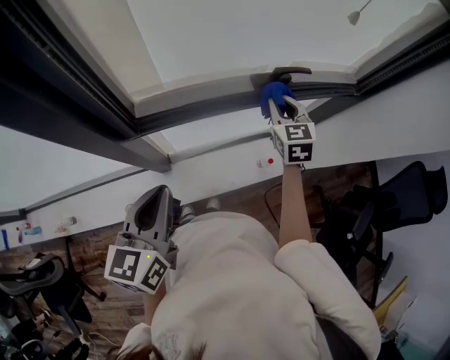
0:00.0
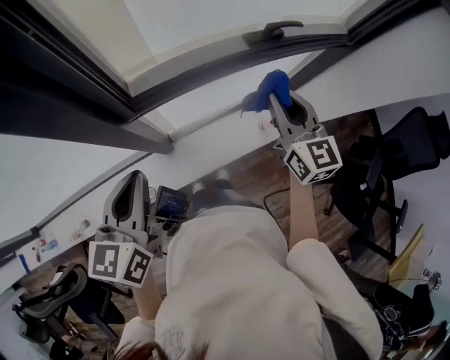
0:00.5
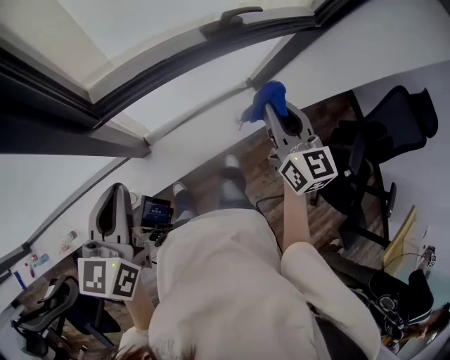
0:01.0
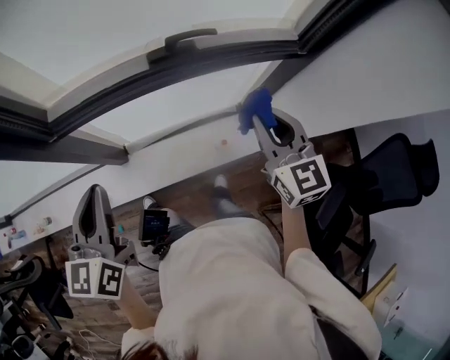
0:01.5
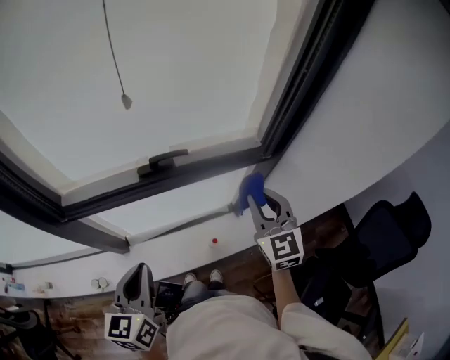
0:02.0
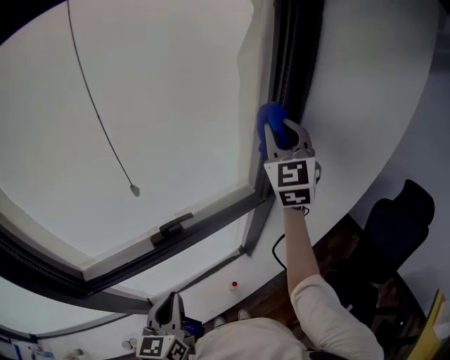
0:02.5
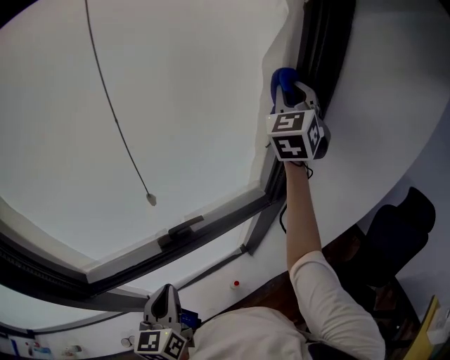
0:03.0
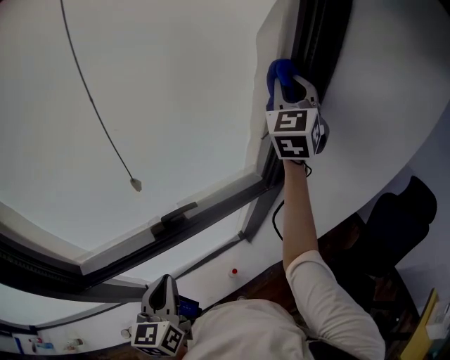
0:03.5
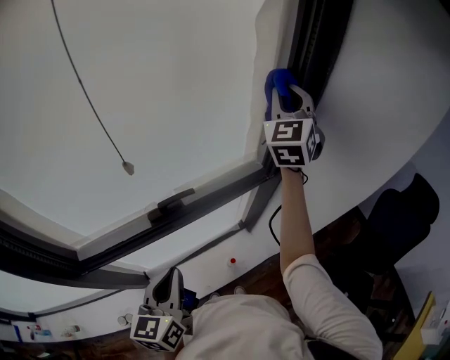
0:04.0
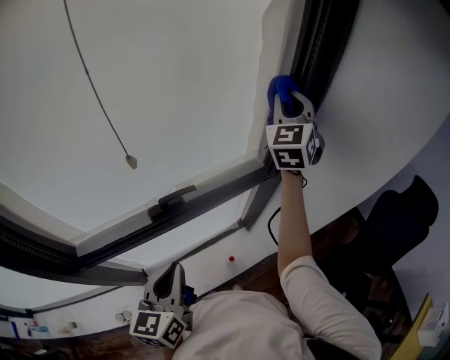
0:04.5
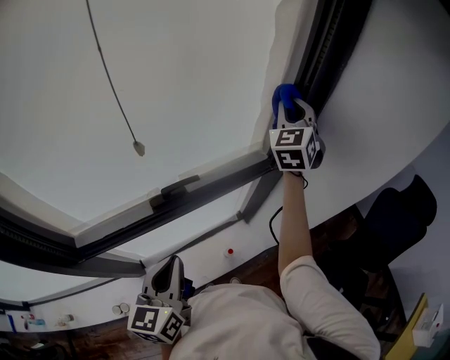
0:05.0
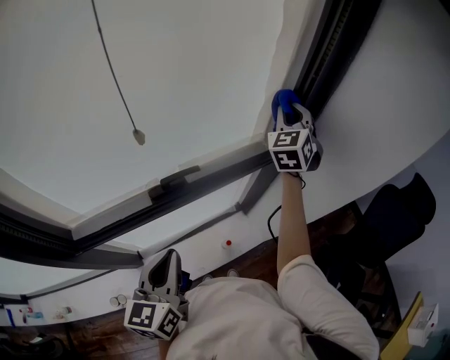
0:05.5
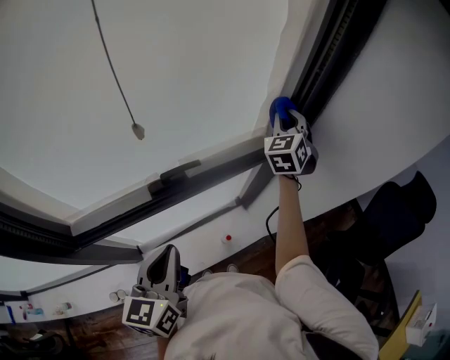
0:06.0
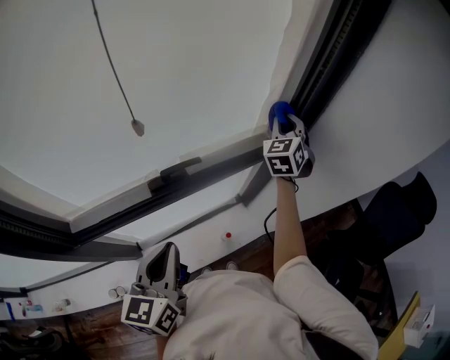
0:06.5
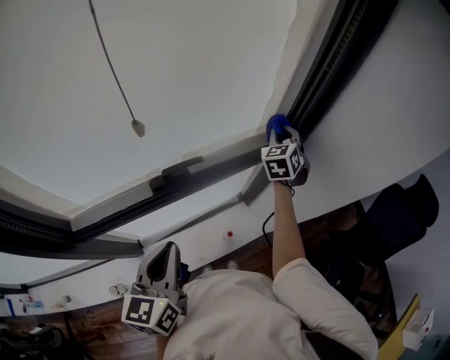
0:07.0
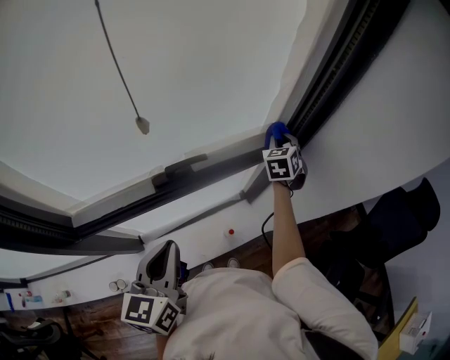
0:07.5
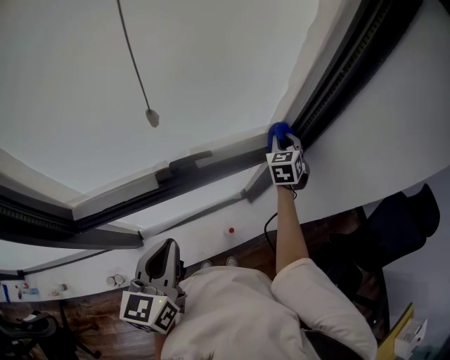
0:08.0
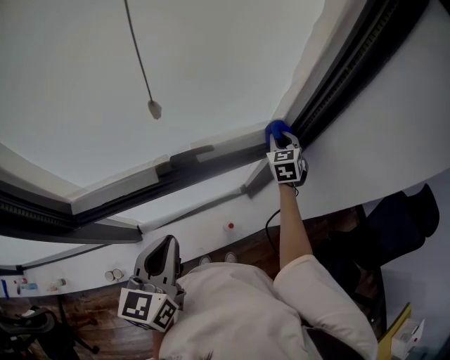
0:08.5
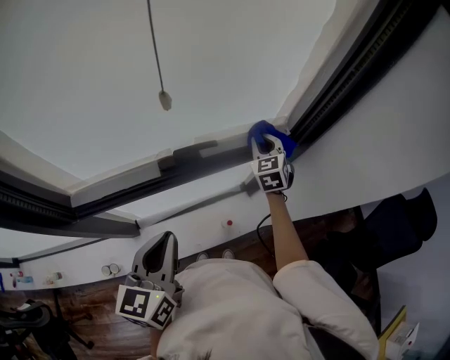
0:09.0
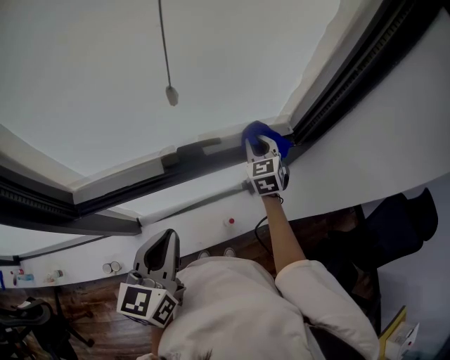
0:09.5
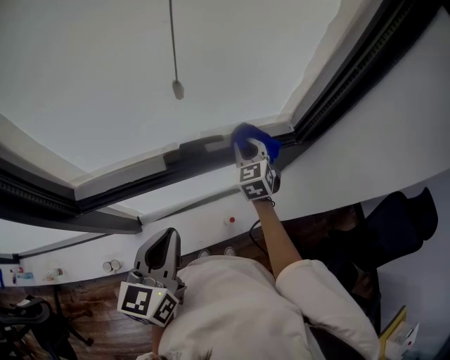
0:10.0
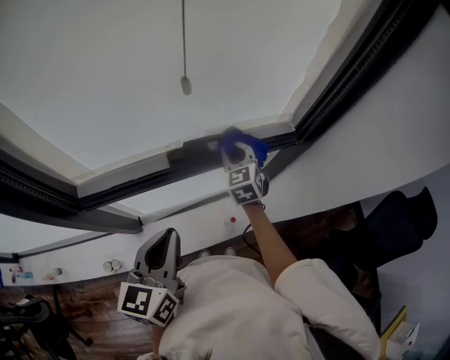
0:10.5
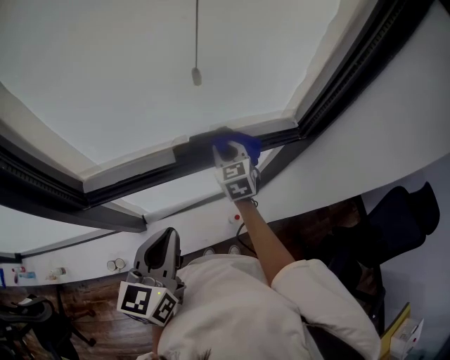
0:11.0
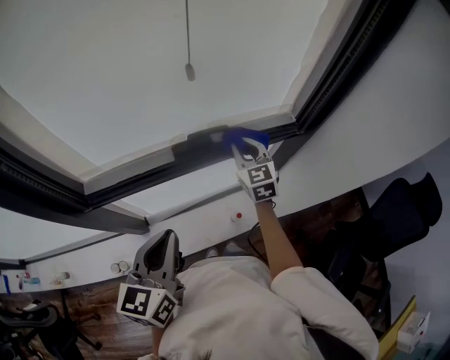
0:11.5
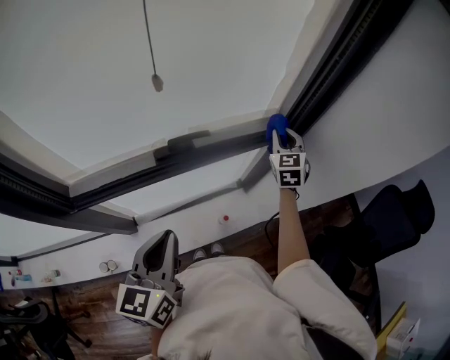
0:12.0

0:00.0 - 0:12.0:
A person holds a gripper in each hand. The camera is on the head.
0:00.0 - 0:02.0: The left gripper travels to the right by roughly 25 cm. The right gripper is displaced to the right and upward by about 30 cm.
0:02.0 - 0:04.0: The right gripper moves forward and upward, approximately 35 cm, and rotates about 40 degrees. The left gripper travels forward by roughly 10 cm.
0:04.0 - 0:06.0: The right gripper heads downward, covering roughly 20 cm.
0:06.0 - 0:08.0: The right gripper is displaced downward by some 15 cm.
0:08.0 - 0:10.0: The right gripper is displaced to the left and backward by about 20 cm, and swivels roughly 20 degrees.
0:10.0 - 0:12.0: The right gripper travels to the right by about 15 cm.

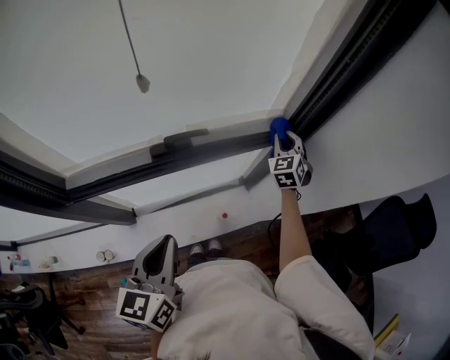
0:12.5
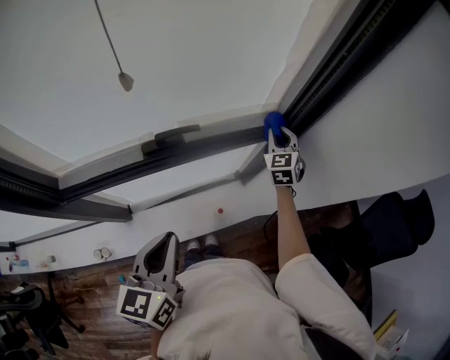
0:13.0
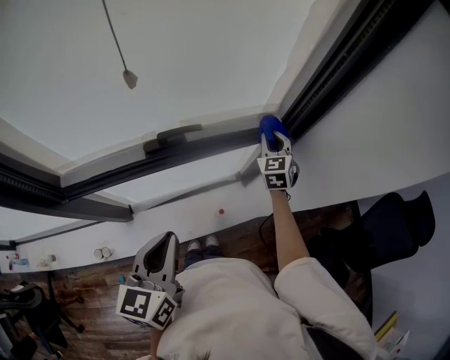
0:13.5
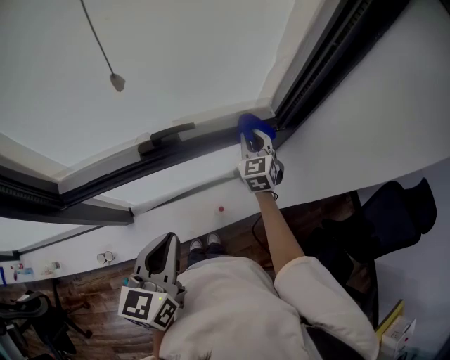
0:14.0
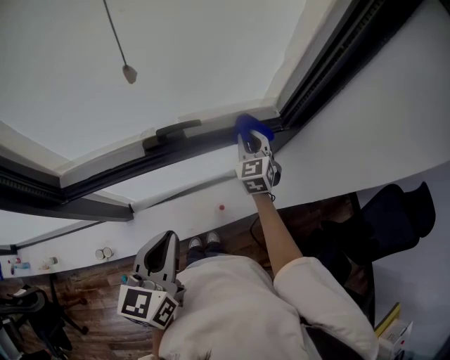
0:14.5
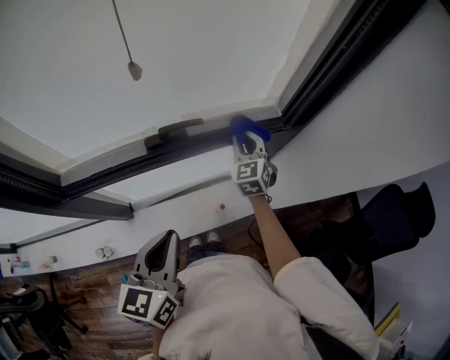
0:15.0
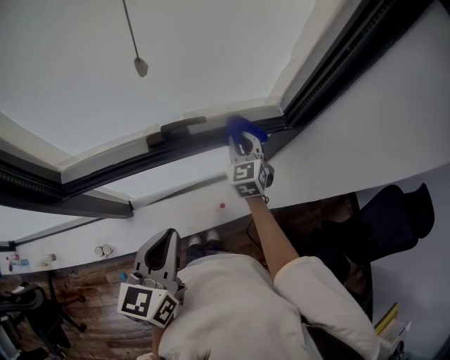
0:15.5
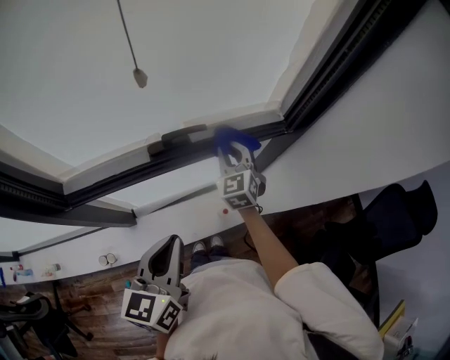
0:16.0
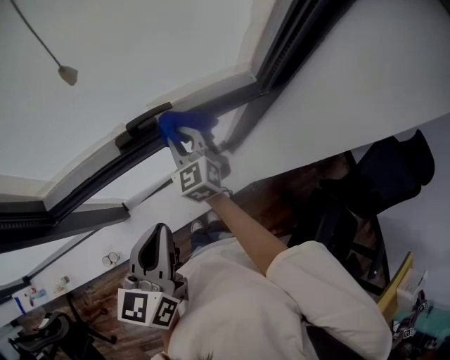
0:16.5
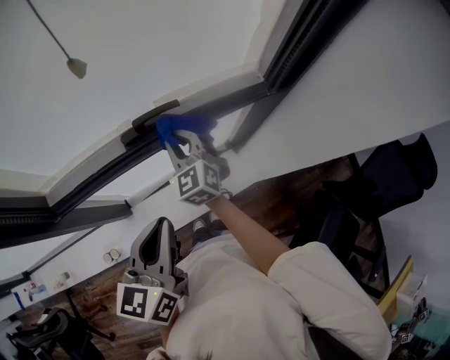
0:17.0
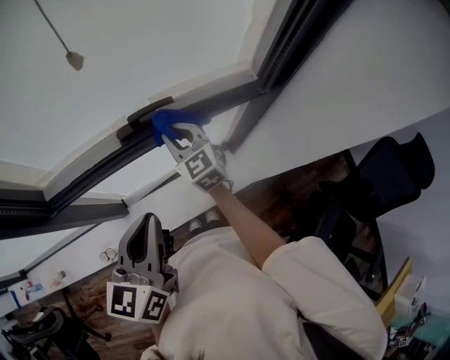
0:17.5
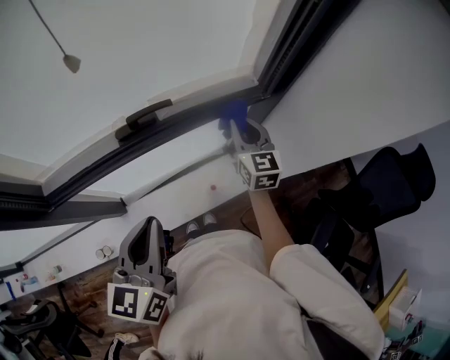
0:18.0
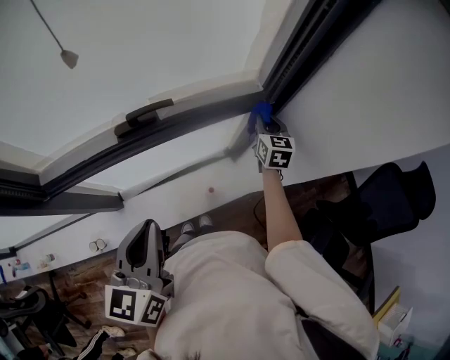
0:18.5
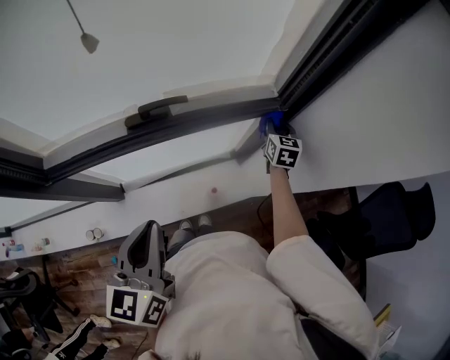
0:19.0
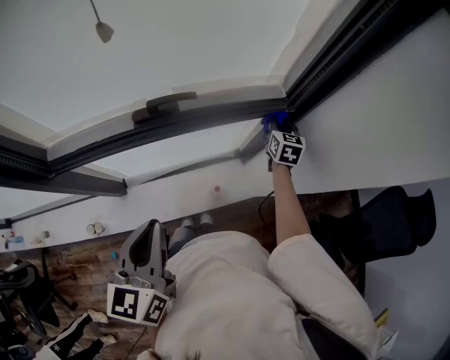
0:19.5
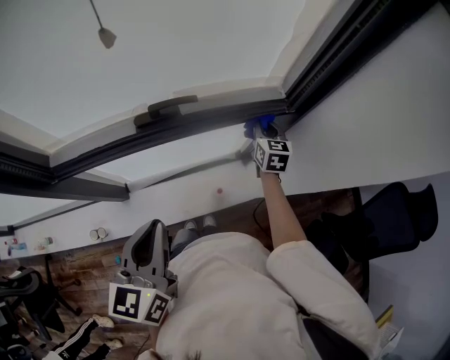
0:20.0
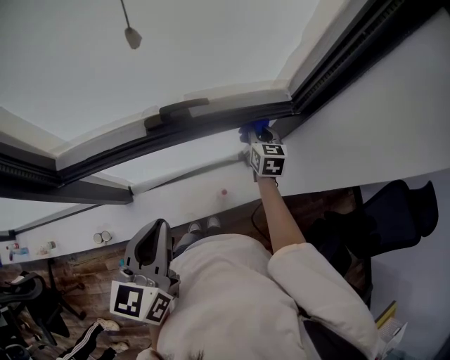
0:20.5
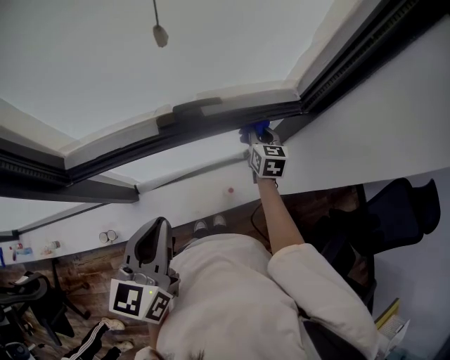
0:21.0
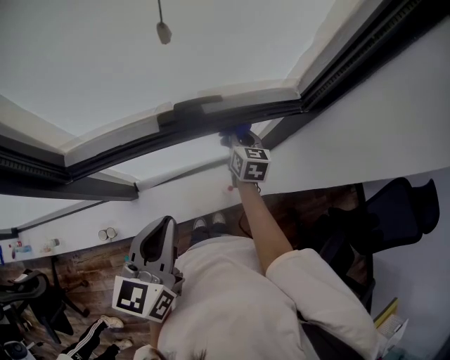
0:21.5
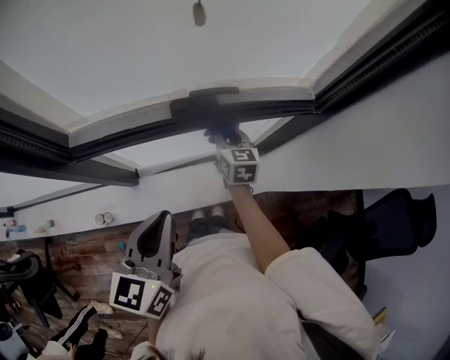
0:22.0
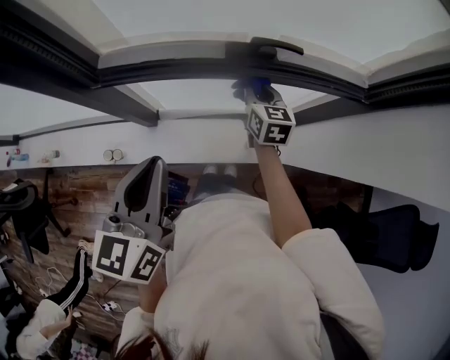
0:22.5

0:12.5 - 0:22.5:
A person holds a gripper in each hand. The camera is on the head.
0:12.5 - 0:14.5: The right gripper heads to the left and backward, covering roughly 10 cm.
0:14.5 - 0:16.5: The right gripper shifts roughly 15 cm to the left and backward.
0:16.5 - 0:18.5: The right gripper goes roughly 30 cm to the right, and rotates about 30 degrees.
0:18.5 - 0:20.5: The right gripper heads to the left, covering some 10 cm.
0:20.5 - 0:22.5: The left gripper heads to the left, covering some 10 cm. Meanwhile the right gripper heads to the left, covering about 25 cm, and turns by some 20 degrees.

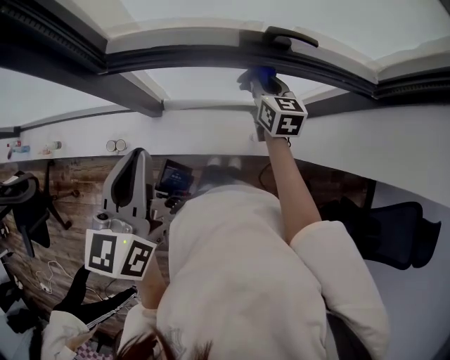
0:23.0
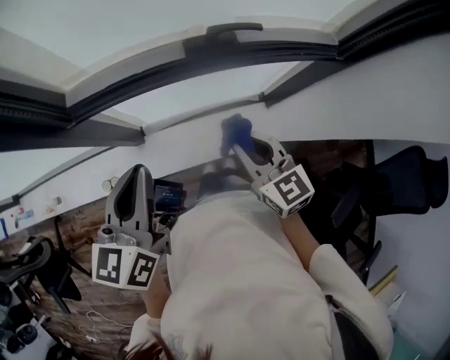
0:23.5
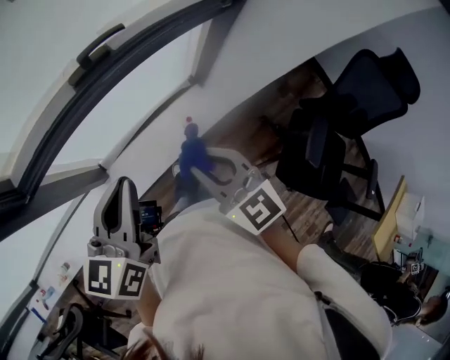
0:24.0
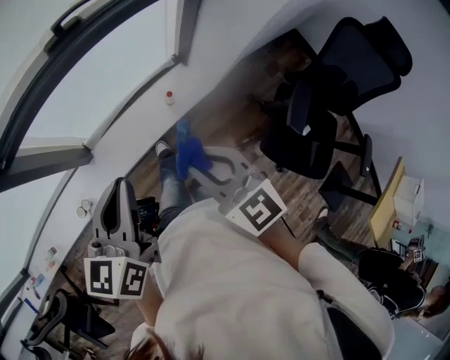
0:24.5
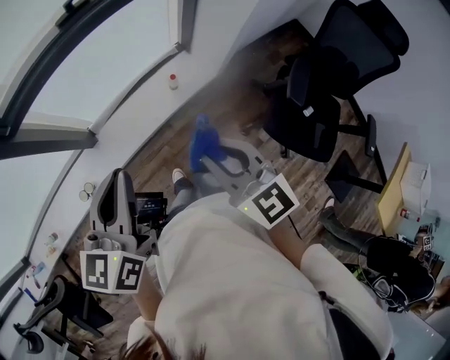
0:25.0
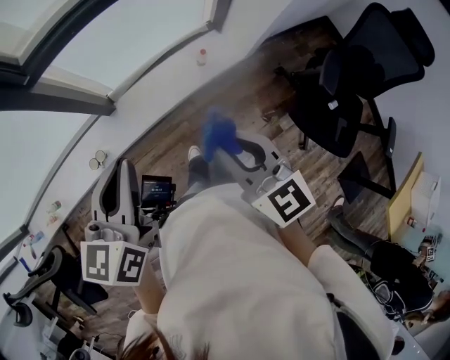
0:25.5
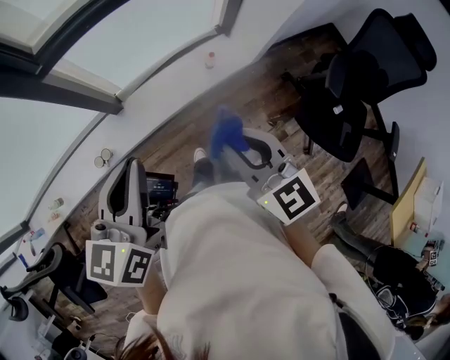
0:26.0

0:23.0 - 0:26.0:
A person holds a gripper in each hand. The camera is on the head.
0:23.0 - 0:24.5: The right gripper travels backward by roughly 40 cm. Meanwhile the left gripper heads to the right and backward, covering roughly 20 cm, and changes its angle by roughly 40 degrees.
0:24.5 - 0:26.0: Both grippers move backward and to the left, some 20 cm.

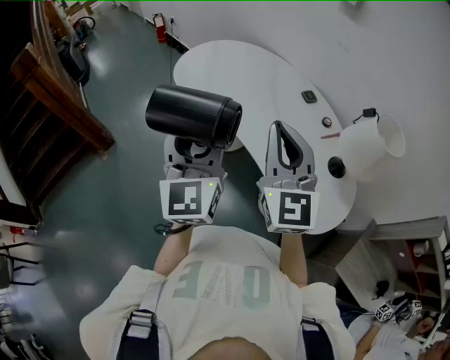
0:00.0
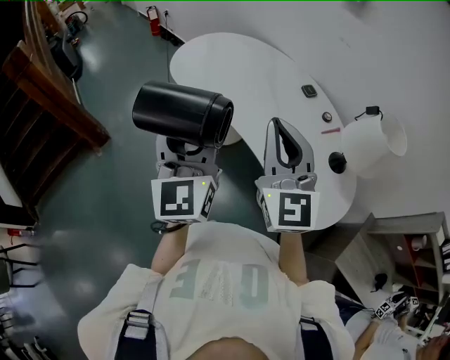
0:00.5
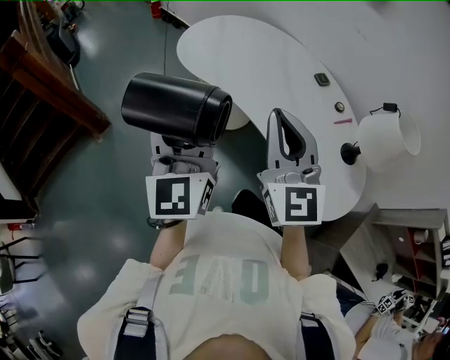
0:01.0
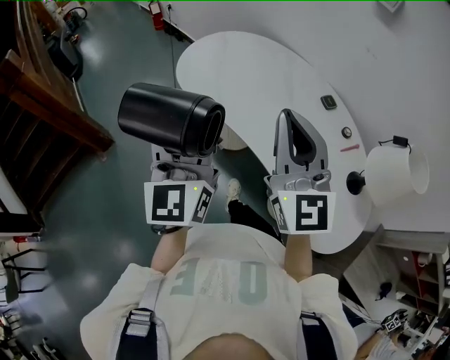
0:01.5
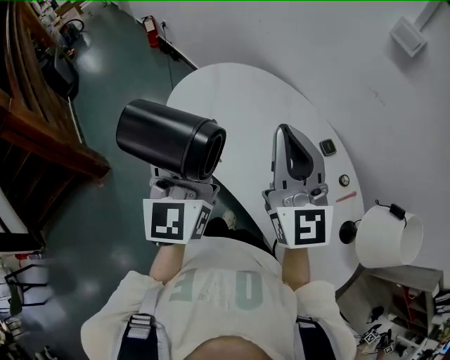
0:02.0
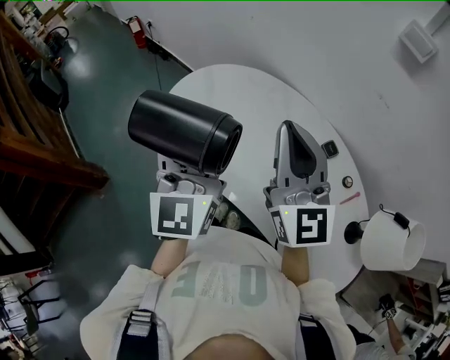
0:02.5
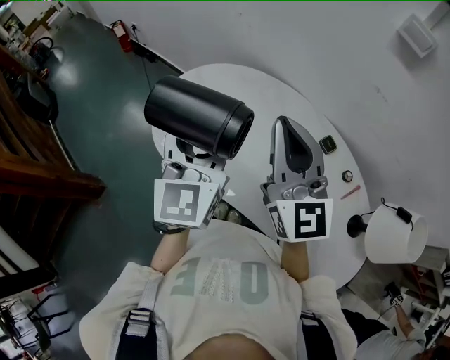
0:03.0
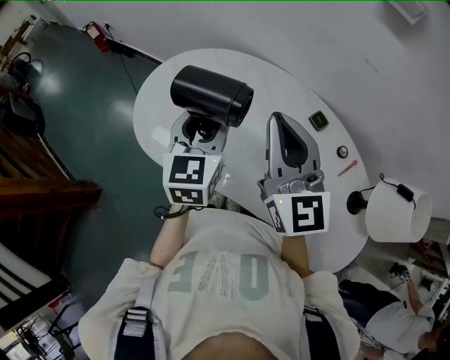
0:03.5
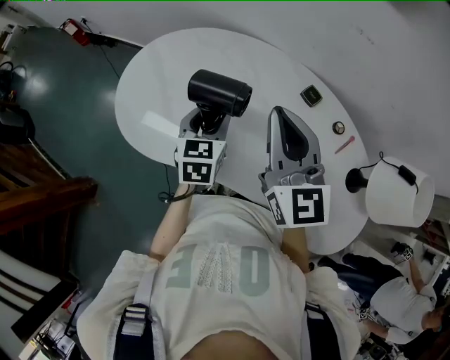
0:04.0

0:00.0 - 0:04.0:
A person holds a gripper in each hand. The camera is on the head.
0:00.0 - 0:02.0: The two grippers go roughly 30 cm forward.
0:02.0 - 0:04.0: The left gripper travels downward and forward by approximately 30 cm, and tips its fingers downward by approximately 50 degrees. Meanwhile the right gripper goes some 15 cm downward, forward and to the right, and swivels approximately 30 degrees.
